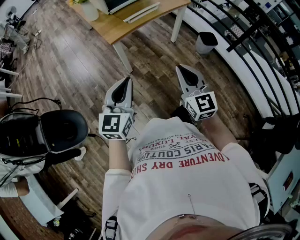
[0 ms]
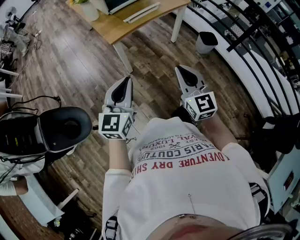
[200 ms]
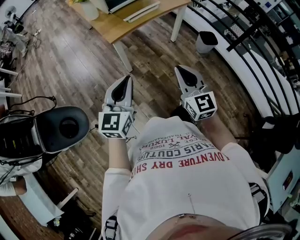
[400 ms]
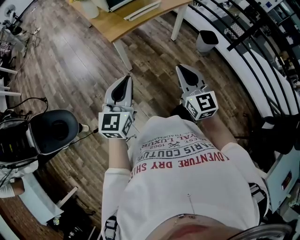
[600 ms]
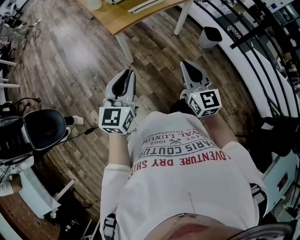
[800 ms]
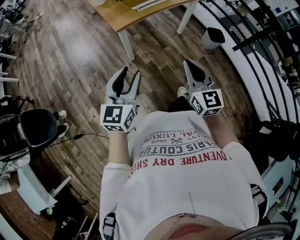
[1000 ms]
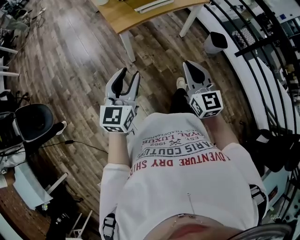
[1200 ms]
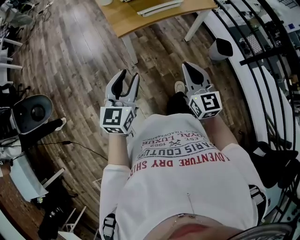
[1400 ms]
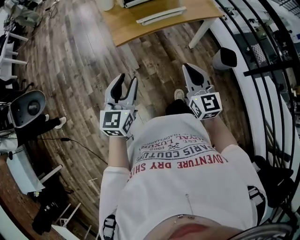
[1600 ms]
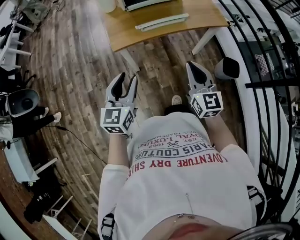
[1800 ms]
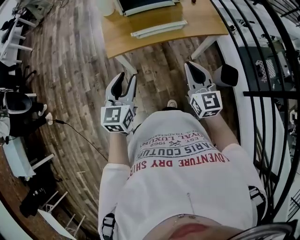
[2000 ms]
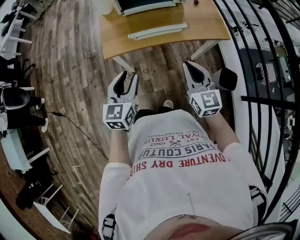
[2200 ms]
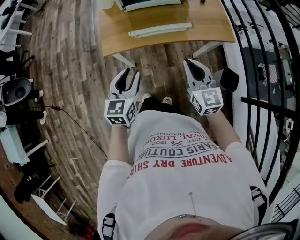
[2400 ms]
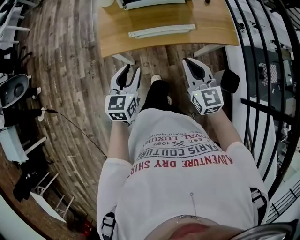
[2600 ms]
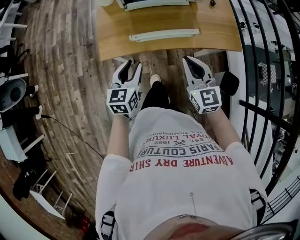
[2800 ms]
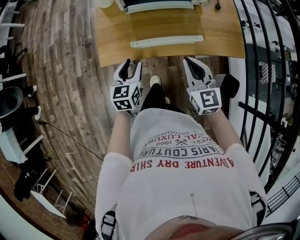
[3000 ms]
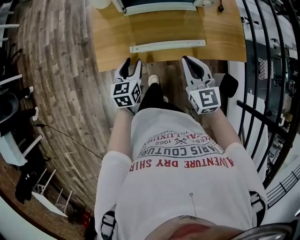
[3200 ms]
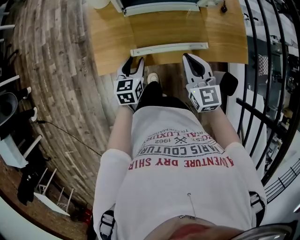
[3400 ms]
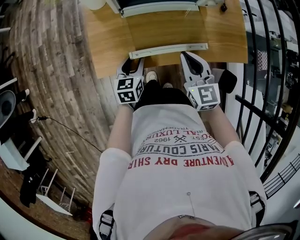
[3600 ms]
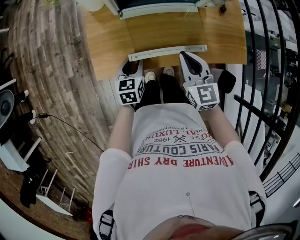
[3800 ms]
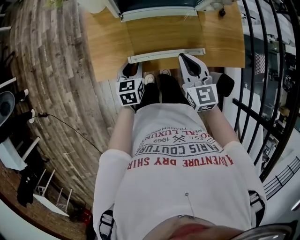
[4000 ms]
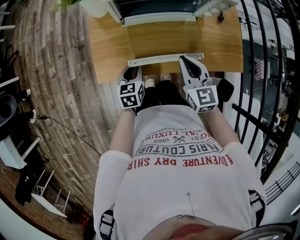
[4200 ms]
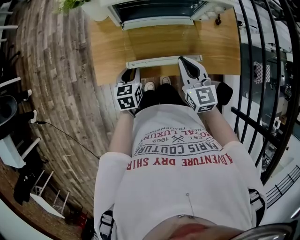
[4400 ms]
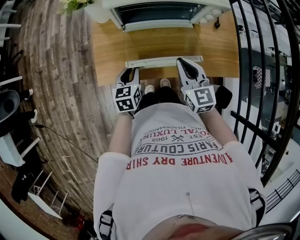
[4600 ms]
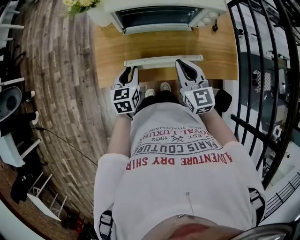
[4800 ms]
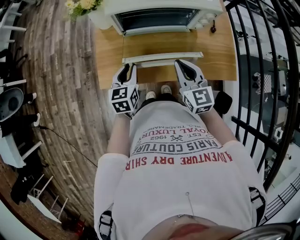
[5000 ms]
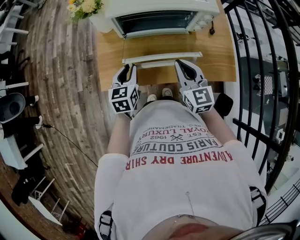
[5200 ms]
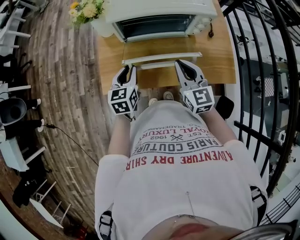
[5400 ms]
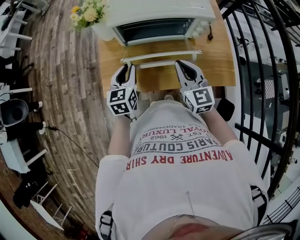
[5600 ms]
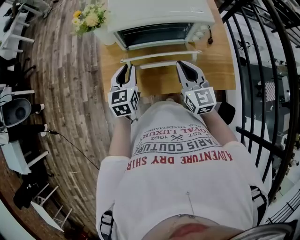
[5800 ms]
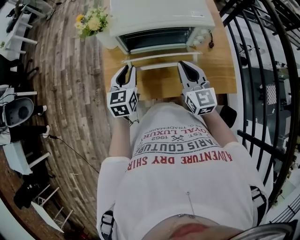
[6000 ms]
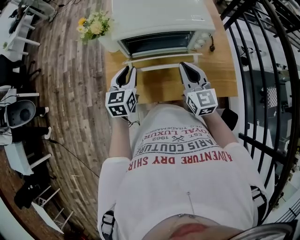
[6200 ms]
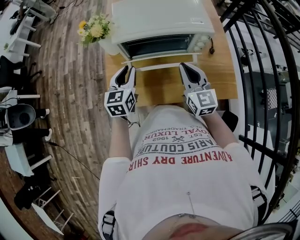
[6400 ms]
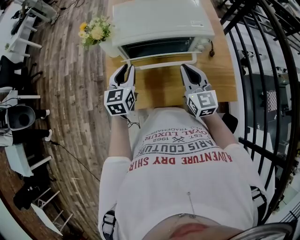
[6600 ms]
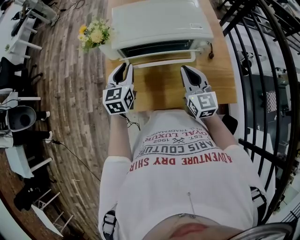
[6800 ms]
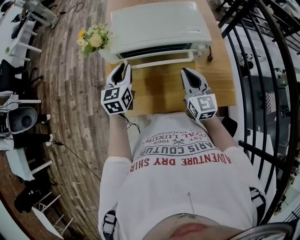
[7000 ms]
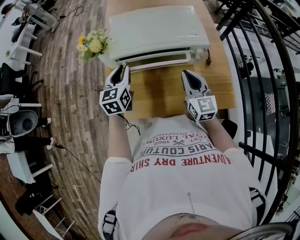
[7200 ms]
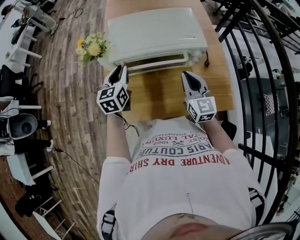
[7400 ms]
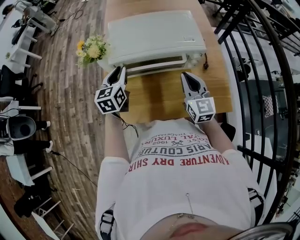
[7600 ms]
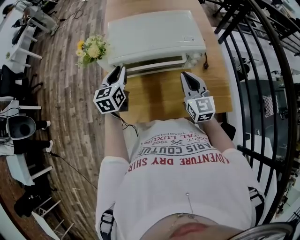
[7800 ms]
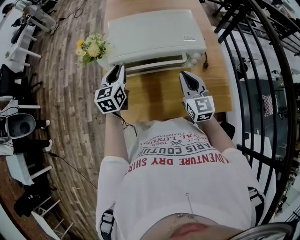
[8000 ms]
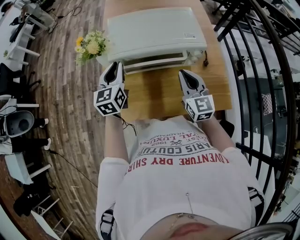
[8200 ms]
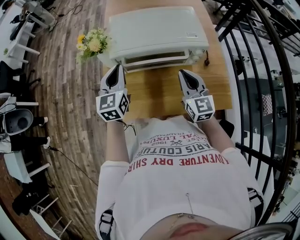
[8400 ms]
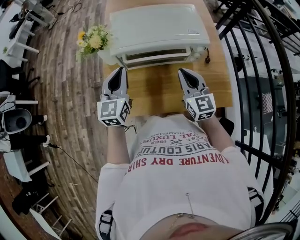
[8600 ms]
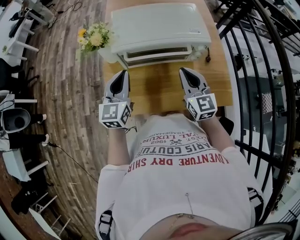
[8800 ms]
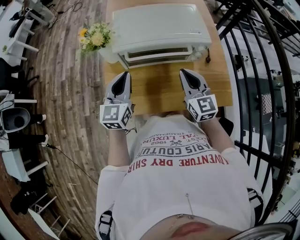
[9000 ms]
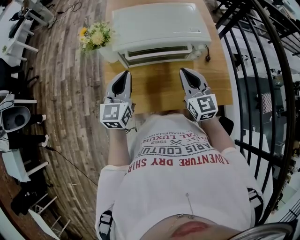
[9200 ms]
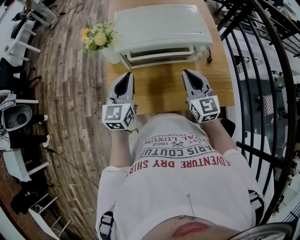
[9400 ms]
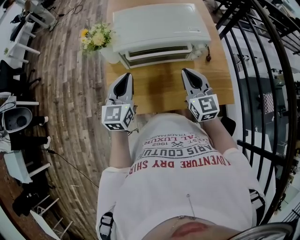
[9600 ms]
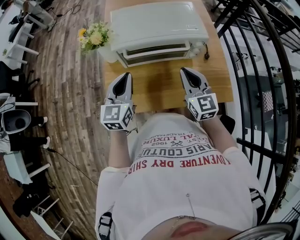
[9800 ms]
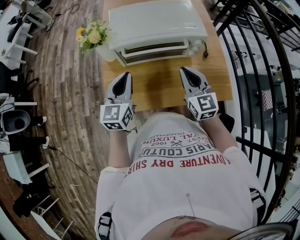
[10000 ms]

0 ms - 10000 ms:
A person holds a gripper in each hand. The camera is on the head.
0 ms - 1400 ms: Both grippers travel together forward, some 10 cm. The left gripper opens up.
1400 ms - 2800 ms: The left gripper heads forward, to the right and downward, covering some 35 cm, and rotates approximately 30 degrees; the right gripper goes roughly 35 cm forward and to the right, and turns by about 20 degrees.
2800 ms - 4200 ms: The left gripper heads forward and downward, covering about 15 cm. Meanwhile the right gripper travels forward by approximately 15 cm.
4200 ms - 5800 ms: The left gripper shifts roughly 20 cm upward and forward, and rotates about 20 degrees; the right gripper travels upward by roughly 10 cm.
5800 ms - 7200 ms: The left gripper shifts approximately 10 cm forward and upward. The right gripper shifts approximately 5 cm forward.
7200 ms - 8600 ms: The left gripper shifts roughly 5 cm upward.
8600 ms - 10000 ms: The left gripper changes place by some 5 cm.

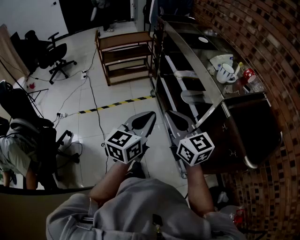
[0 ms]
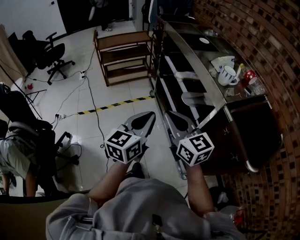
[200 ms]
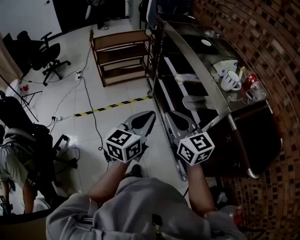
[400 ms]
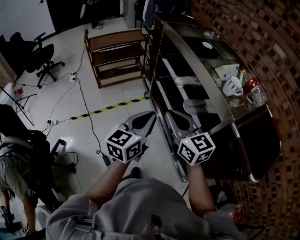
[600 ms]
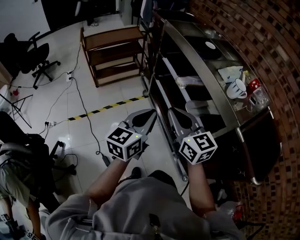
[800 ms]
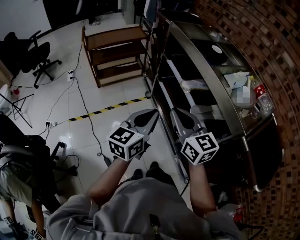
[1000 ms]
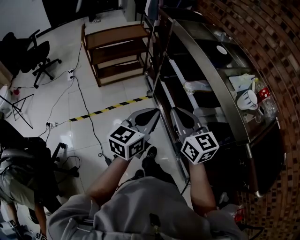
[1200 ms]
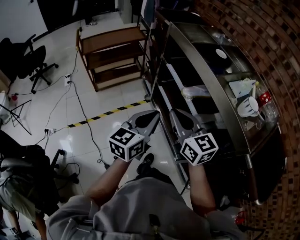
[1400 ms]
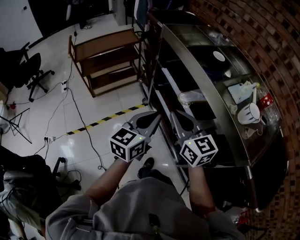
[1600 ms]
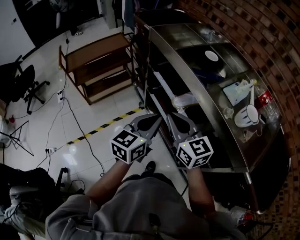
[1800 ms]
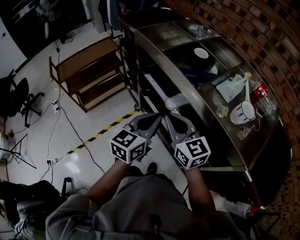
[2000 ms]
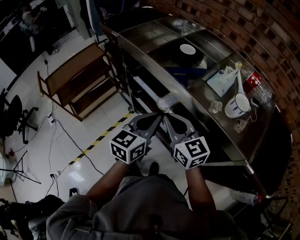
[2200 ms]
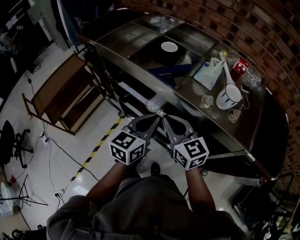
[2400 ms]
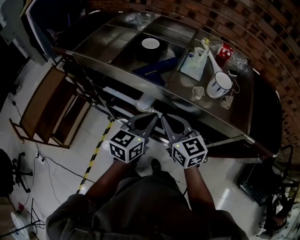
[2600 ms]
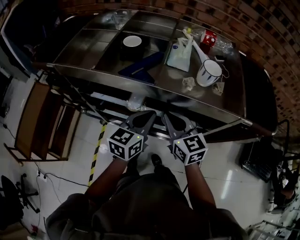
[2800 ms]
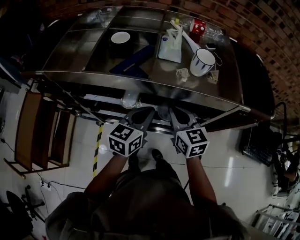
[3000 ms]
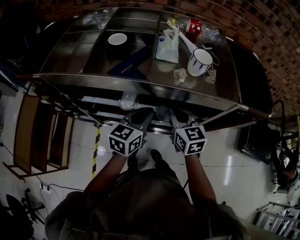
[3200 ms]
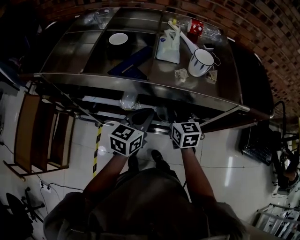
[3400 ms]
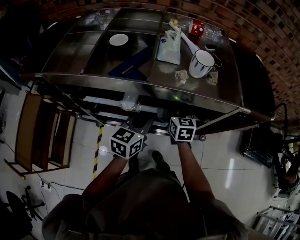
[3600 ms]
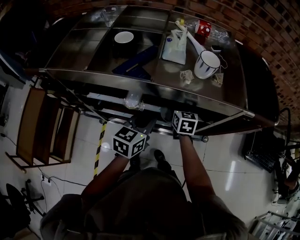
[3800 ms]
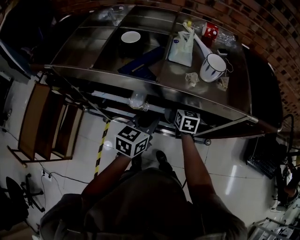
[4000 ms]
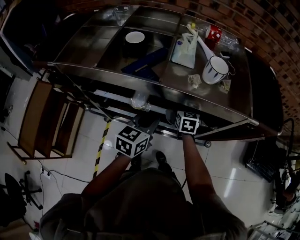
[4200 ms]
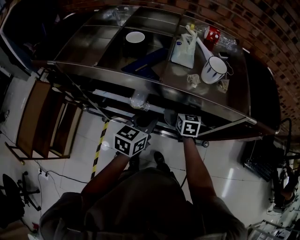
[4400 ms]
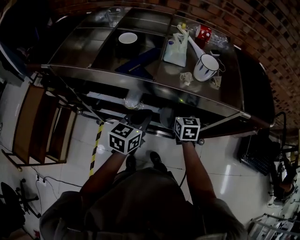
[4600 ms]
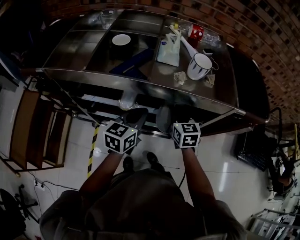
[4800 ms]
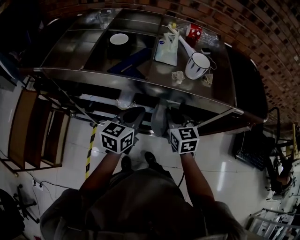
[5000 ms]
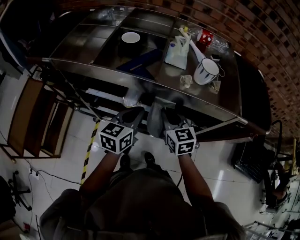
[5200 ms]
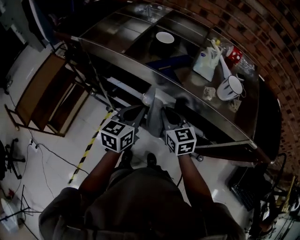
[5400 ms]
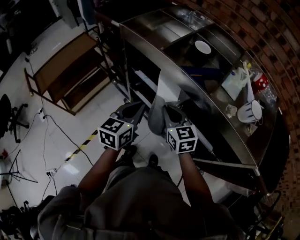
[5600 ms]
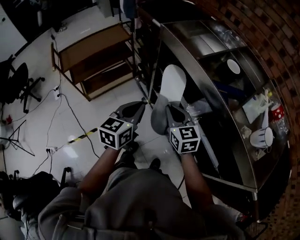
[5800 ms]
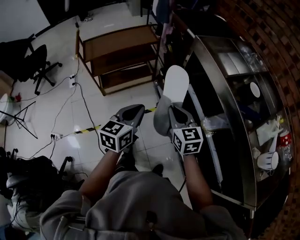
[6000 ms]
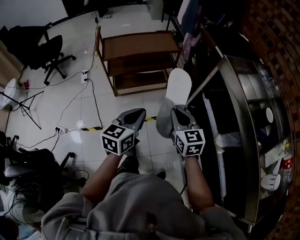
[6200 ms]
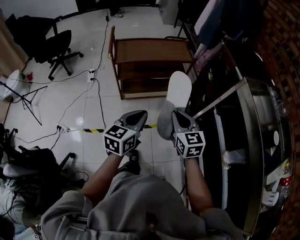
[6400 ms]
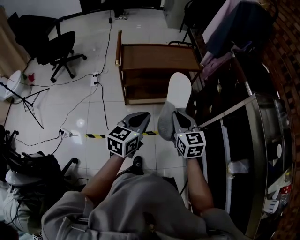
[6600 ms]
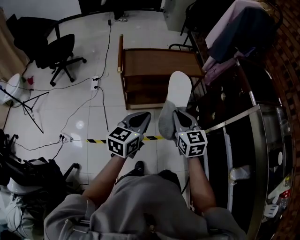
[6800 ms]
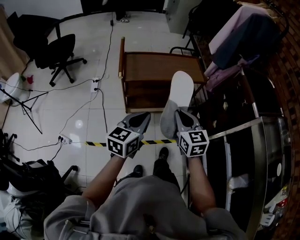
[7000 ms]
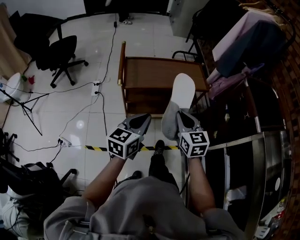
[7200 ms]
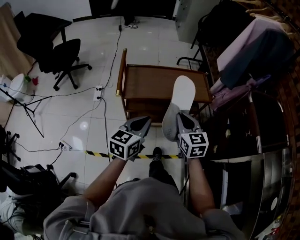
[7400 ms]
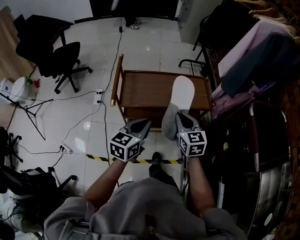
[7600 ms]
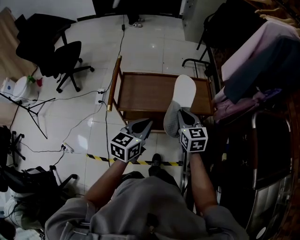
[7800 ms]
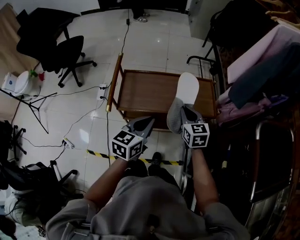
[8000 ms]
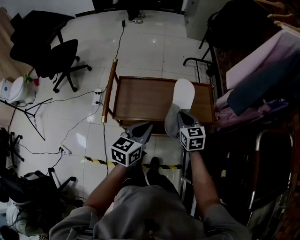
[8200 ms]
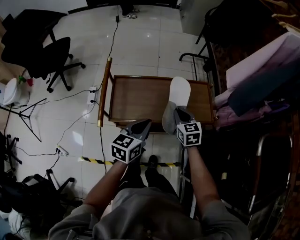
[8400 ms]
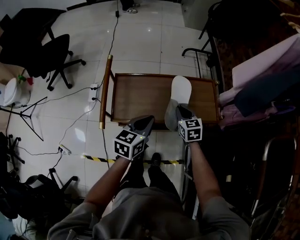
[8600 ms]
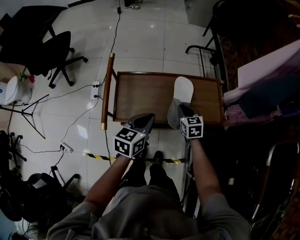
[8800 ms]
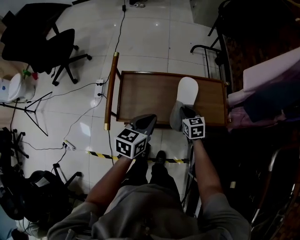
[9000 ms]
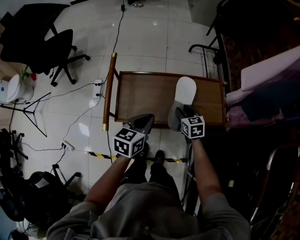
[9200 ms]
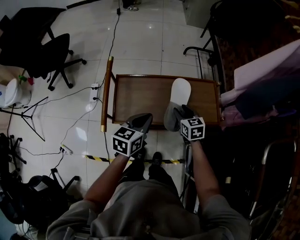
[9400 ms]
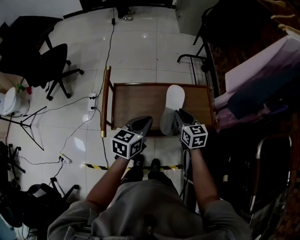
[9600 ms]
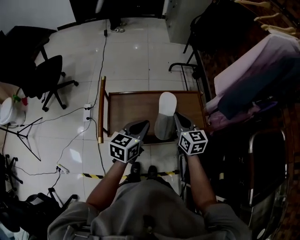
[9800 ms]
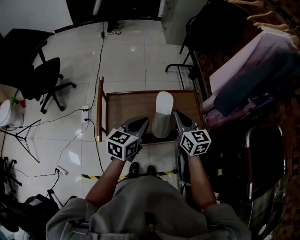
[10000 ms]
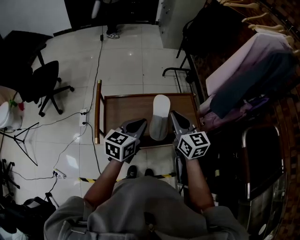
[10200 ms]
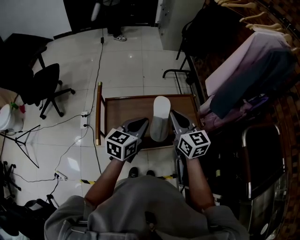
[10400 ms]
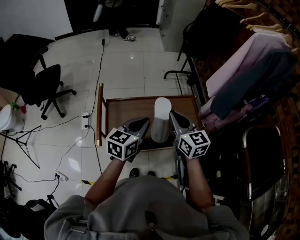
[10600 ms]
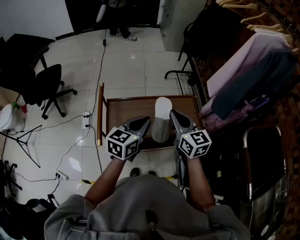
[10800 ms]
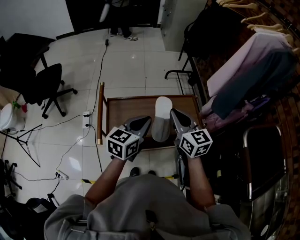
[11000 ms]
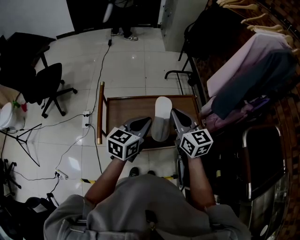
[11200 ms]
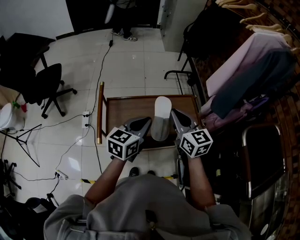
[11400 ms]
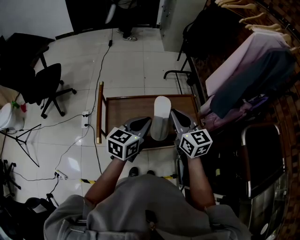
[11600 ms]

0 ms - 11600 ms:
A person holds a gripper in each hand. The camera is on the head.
0 ms - 1400 ms: The grippers both shift forward by about 25 cm.
1400 ms - 2800 ms: The left gripper changes place by about 25 cm, and rotates approximately 50 degrees, while the right gripper changes place by about 20 cm, and swivels approximately 50 degrees.
2800 ms - 4400 ms: The right gripper moves downward, forward and to the right, some 20 cm, turns by approximately 30 degrees, and opens and closes again.
4400 ms - 5800 ms: The left gripper changes place by about 30 cm, and changes its angle by approximately 50 degrees. The right gripper ends up some 35 cm from where it was, and rotates roughly 60 degrees.
5800 ms - 7200 ms: The two grippers travel together, to the left and forward, some 50 cm. The left gripper turns by approximately 30 degrees, while the right gripper swivels some 20 degrees.
7200 ms - 8800 ms: The left gripper goes approximately 30 cm forward; the right gripper heads forward and downward, covering some 40 cm.
8800 ms - 10200 ms: The left gripper shifts roughly 10 cm upward; the right gripper is displaced upward by some 25 cm, rotates some 30 degrees, and opens, then closes again.
10200 ms - 11600 ms: The grippers stay close to where they were, moving slightly.

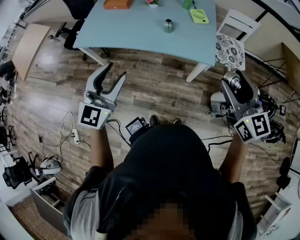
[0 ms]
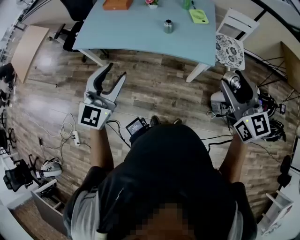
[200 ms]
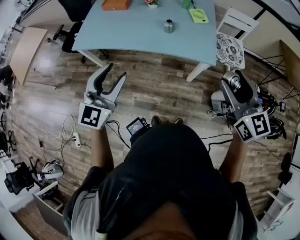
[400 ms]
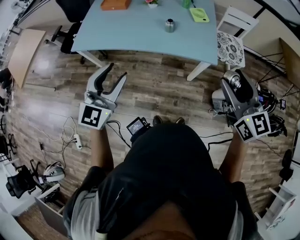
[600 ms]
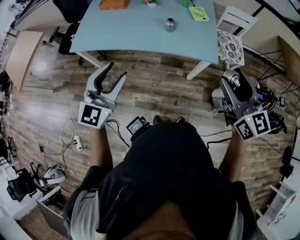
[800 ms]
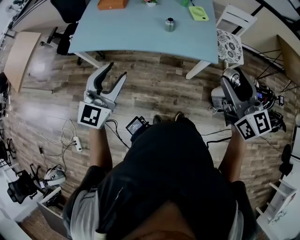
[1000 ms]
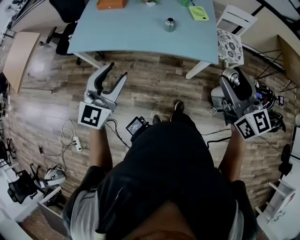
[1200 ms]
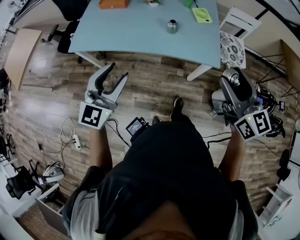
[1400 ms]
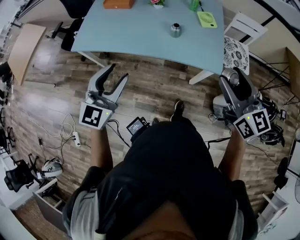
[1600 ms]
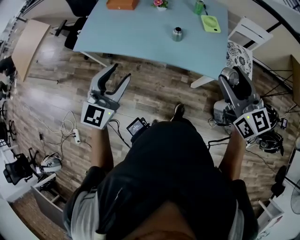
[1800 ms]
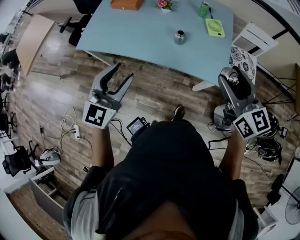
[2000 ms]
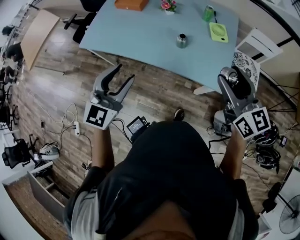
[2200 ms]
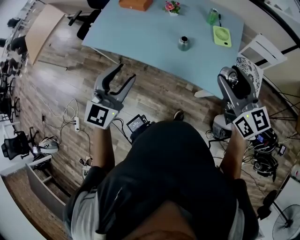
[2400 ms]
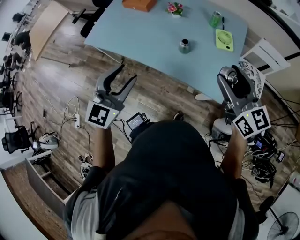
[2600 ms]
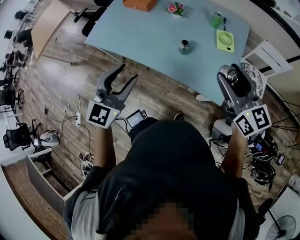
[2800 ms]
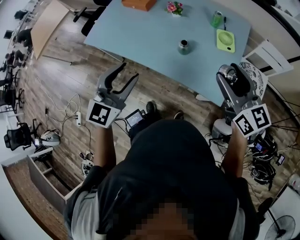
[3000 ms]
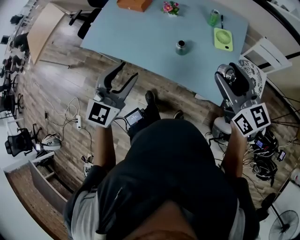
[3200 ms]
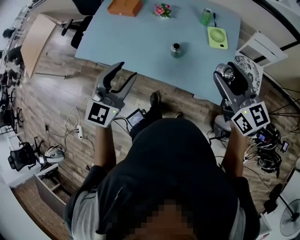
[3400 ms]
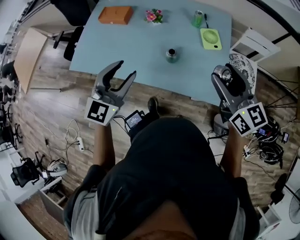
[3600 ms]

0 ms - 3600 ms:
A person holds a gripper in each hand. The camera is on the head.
0 ms - 1800 ms: Both grippers move forward, some 15 cm.
1800 ms - 3600 ms: The left gripper is displaced forward and to the right by approximately 20 cm; the right gripper shifts approximately 20 cm forward.
